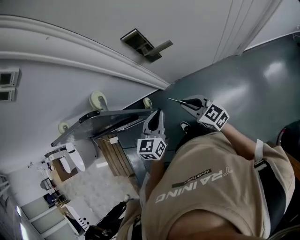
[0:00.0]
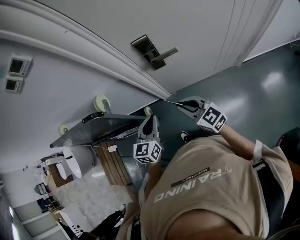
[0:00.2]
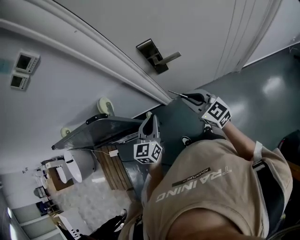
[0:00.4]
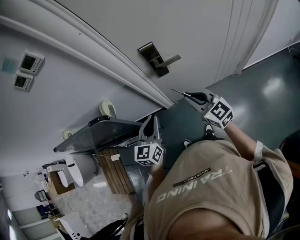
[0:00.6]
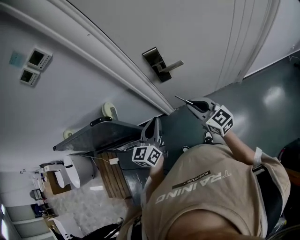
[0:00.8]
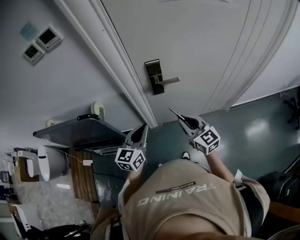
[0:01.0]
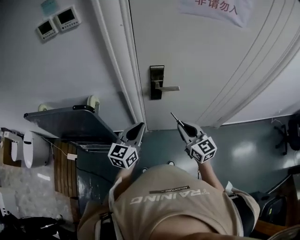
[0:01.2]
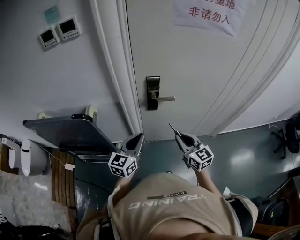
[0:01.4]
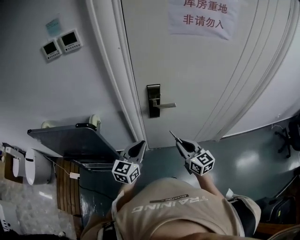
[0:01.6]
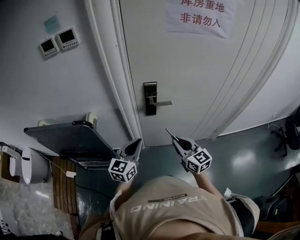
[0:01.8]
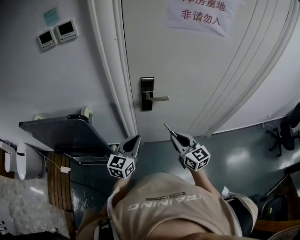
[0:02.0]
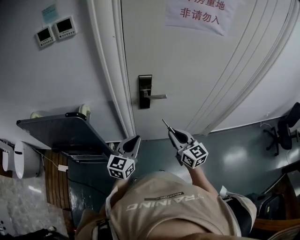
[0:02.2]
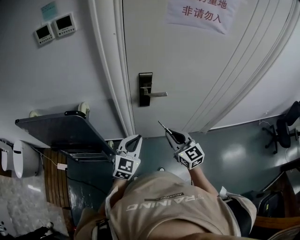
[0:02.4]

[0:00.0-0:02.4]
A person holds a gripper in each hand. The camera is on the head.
0:00.0 to 0:01.2: The grippers both shift upward by about 10 cm.
0:01.2 to 0:02.4: The left gripper swivels roughly 20 degrees.

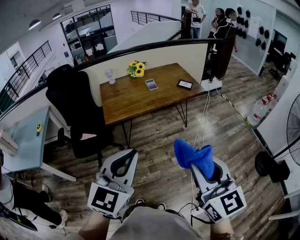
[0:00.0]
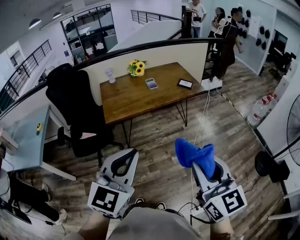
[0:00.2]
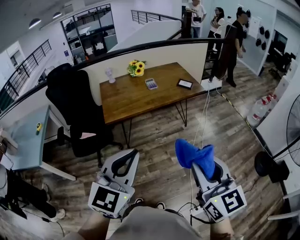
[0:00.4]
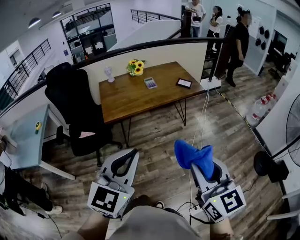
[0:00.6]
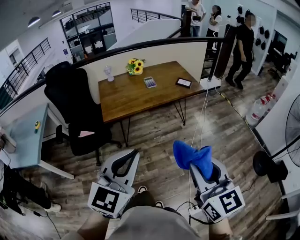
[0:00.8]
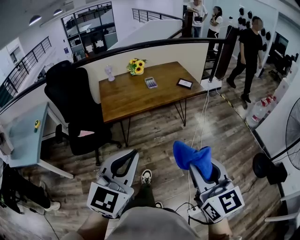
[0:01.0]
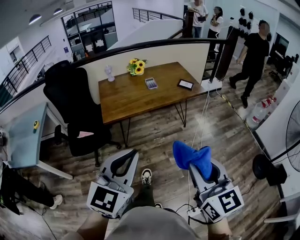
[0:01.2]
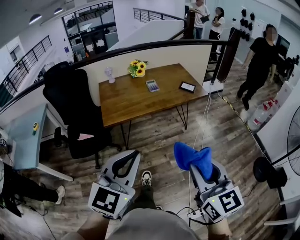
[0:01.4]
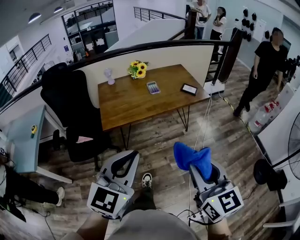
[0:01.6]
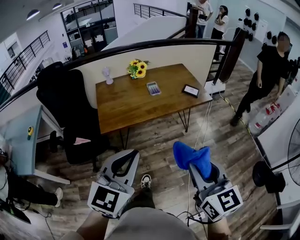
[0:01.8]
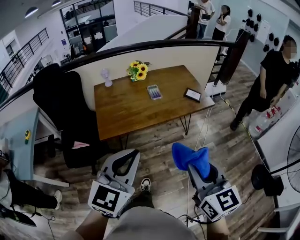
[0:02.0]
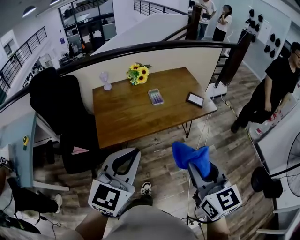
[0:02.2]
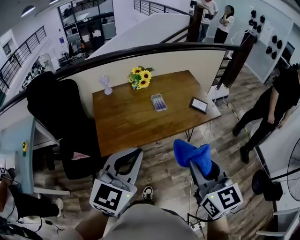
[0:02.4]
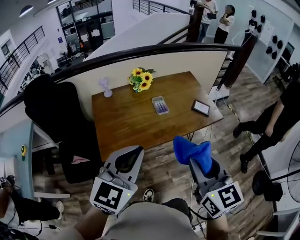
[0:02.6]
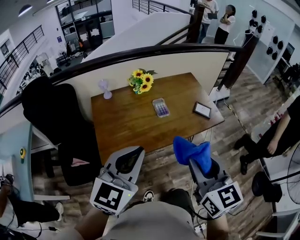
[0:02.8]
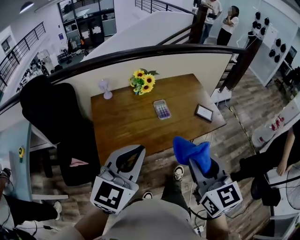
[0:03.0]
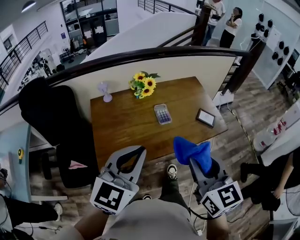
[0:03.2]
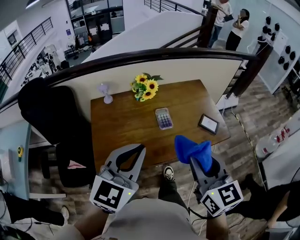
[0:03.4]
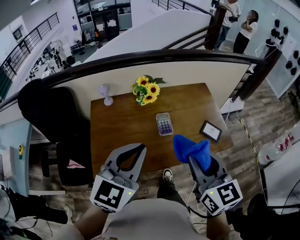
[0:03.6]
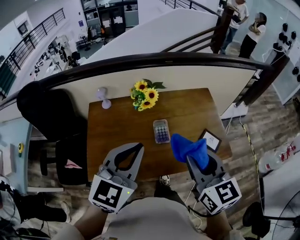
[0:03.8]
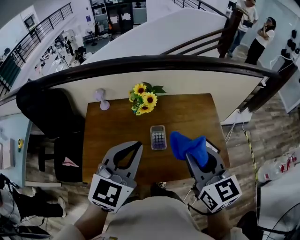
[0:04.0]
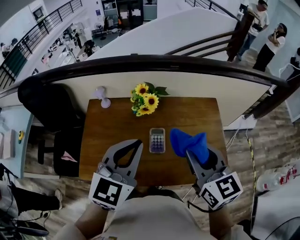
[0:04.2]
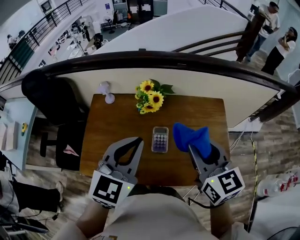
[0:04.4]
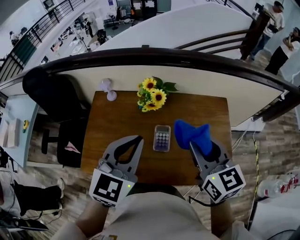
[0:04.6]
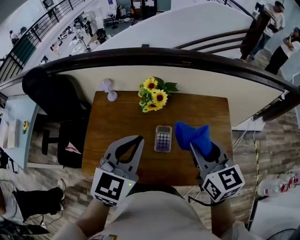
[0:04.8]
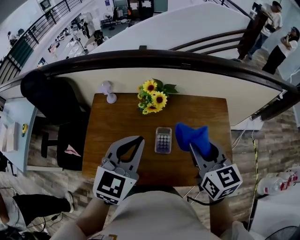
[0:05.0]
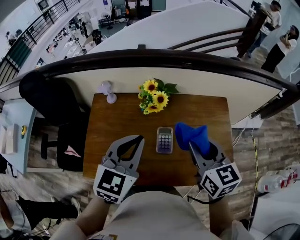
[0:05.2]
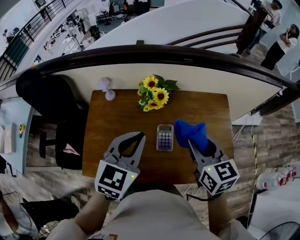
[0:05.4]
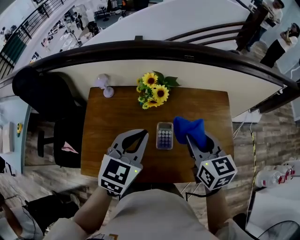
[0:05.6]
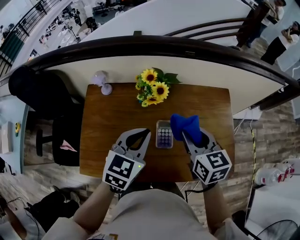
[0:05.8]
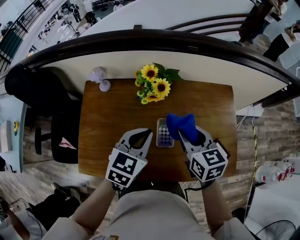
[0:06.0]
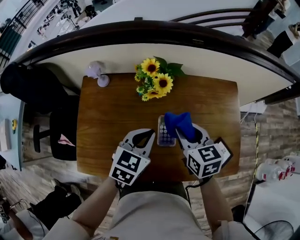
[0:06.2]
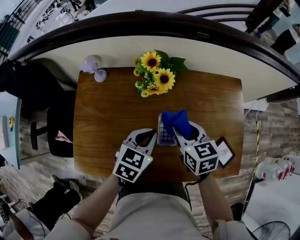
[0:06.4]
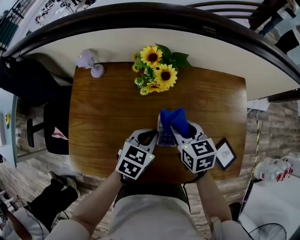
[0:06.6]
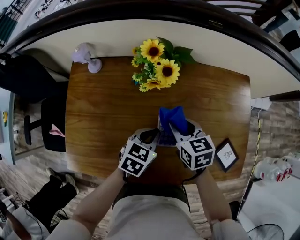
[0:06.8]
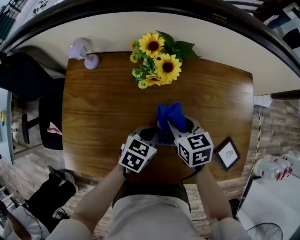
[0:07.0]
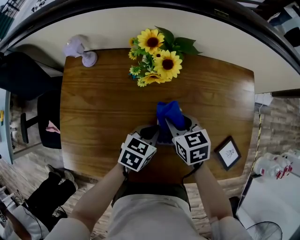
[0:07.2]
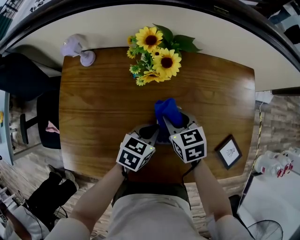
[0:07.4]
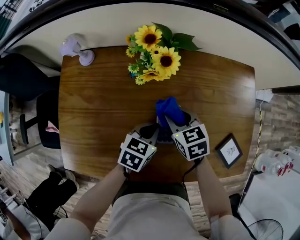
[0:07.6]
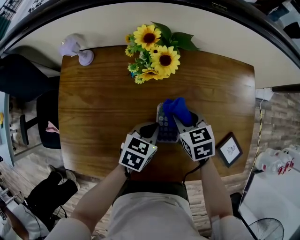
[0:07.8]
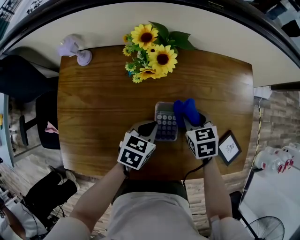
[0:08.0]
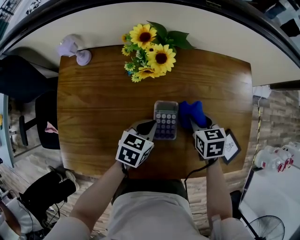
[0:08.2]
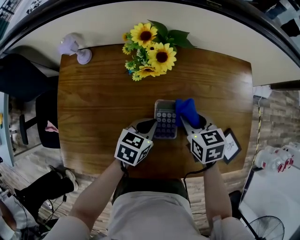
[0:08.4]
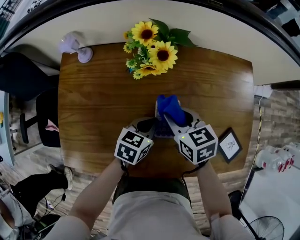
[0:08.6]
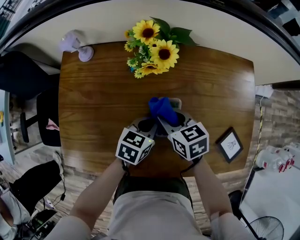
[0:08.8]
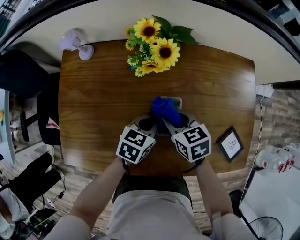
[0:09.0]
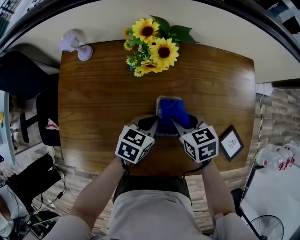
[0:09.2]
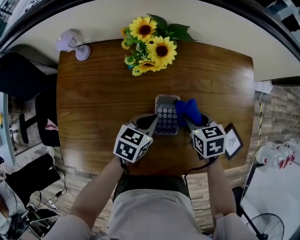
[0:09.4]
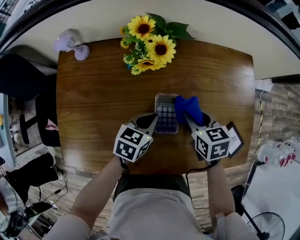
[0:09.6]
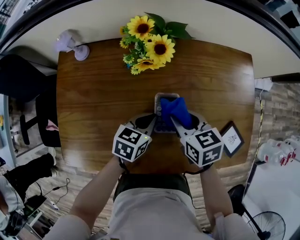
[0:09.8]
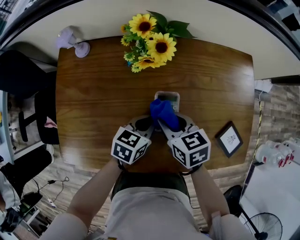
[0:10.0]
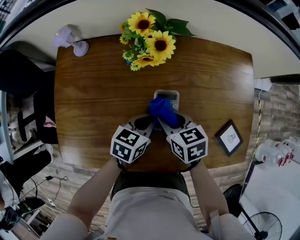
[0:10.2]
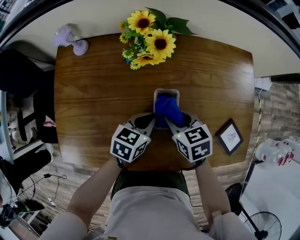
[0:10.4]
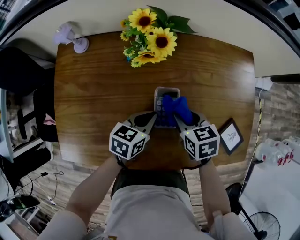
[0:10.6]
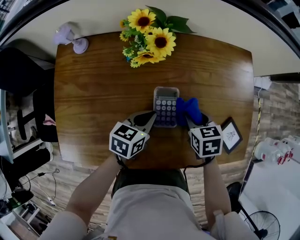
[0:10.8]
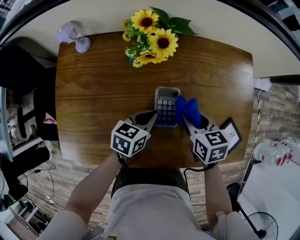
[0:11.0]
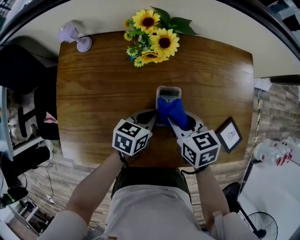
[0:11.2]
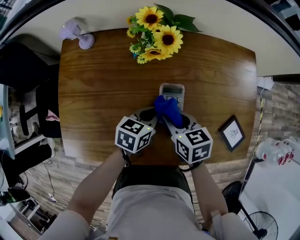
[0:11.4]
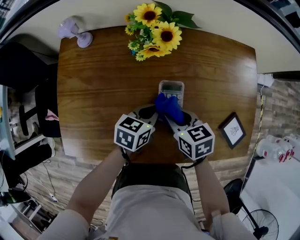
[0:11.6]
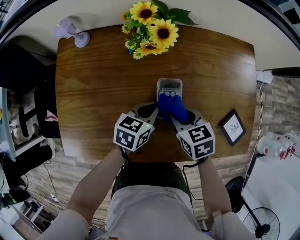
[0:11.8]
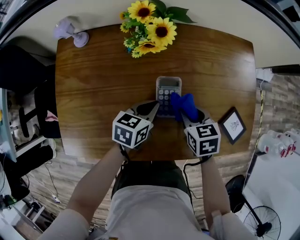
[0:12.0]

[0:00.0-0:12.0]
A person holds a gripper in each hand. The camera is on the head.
0:00.0 to 0:01.6: Both grippers move forward, some 10 cm.
0:01.6 to 0:03.0: Both grippers travel together forward, approximately 35 cm.
0:03.0 to 0:04.4: The grippers both shift forward by approximately 35 cm. The left gripper changes its angle by some 30 degrees, while the right gripper swivels some 20 degrees.
0:04.4 to 0:06.0: The two grippers go some 20 cm downward and forward. The left gripper changes its angle by approximately 20 degrees.
0:06.0 to 0:07.6: The two grippers go about 25 cm downward. The left gripper swivels approximately 20 degrees.
0:07.6 to 0:09.0: The right gripper moves roughly 10 cm to the right and comes back.
0:09.0 to 0:10.4: The right gripper moves some 10 cm to the right and comes back.
0:10.4 to 0:12.0: The right gripper goes left and right, approximately 10 cm each way, reversing 2 times.

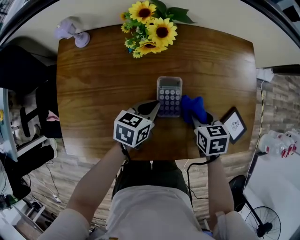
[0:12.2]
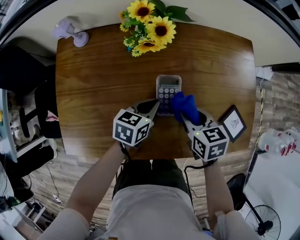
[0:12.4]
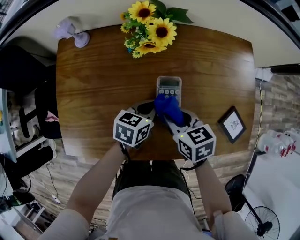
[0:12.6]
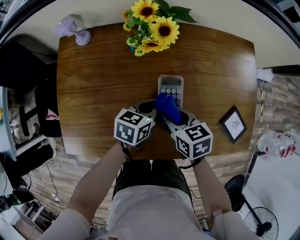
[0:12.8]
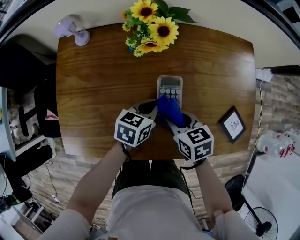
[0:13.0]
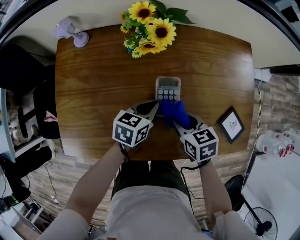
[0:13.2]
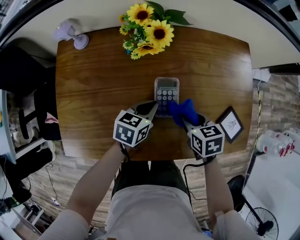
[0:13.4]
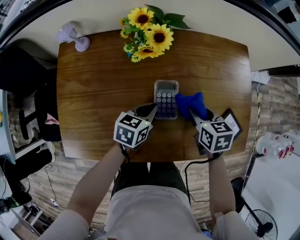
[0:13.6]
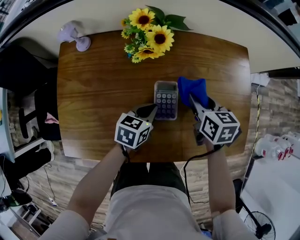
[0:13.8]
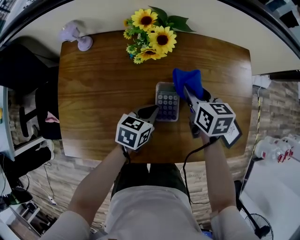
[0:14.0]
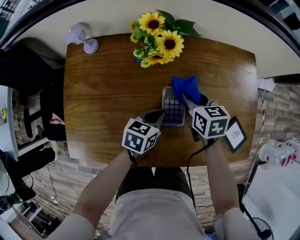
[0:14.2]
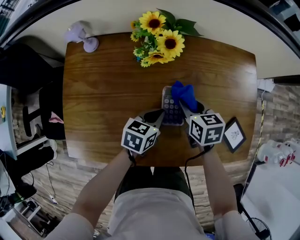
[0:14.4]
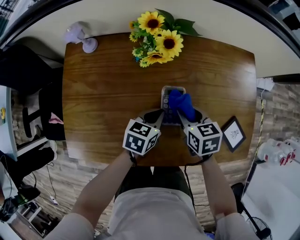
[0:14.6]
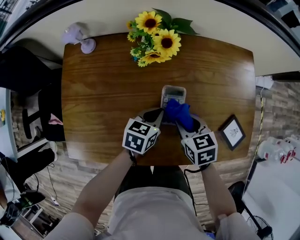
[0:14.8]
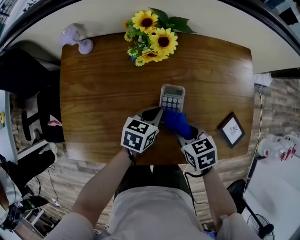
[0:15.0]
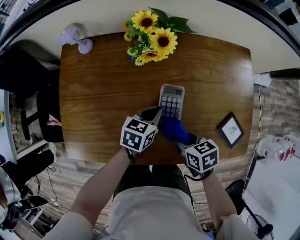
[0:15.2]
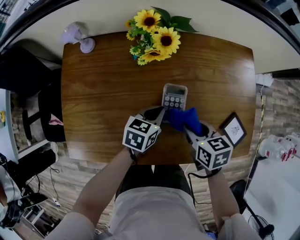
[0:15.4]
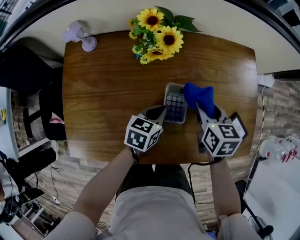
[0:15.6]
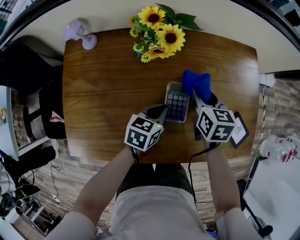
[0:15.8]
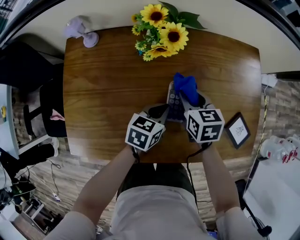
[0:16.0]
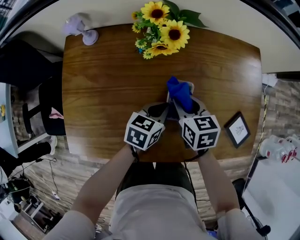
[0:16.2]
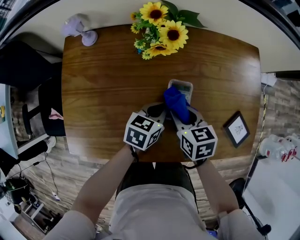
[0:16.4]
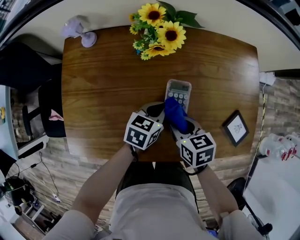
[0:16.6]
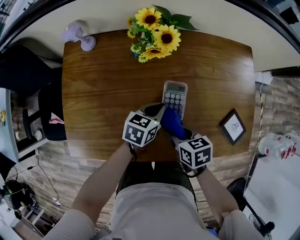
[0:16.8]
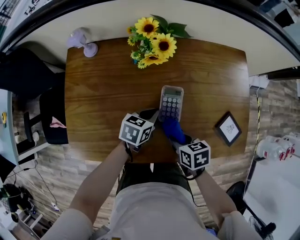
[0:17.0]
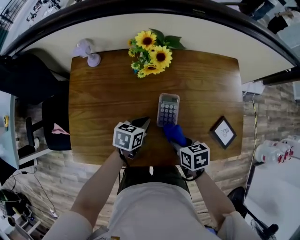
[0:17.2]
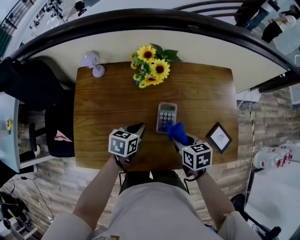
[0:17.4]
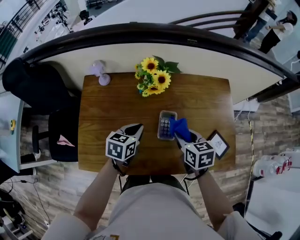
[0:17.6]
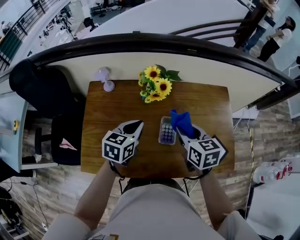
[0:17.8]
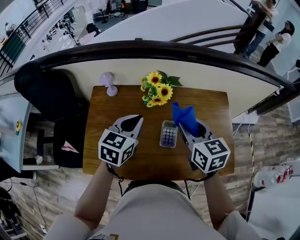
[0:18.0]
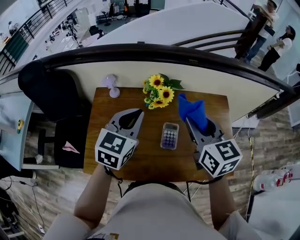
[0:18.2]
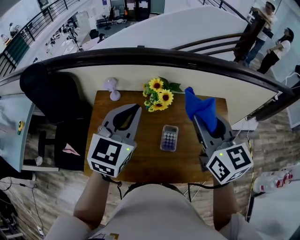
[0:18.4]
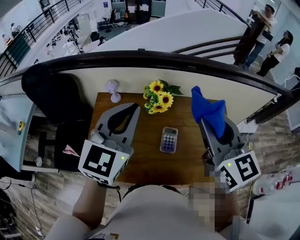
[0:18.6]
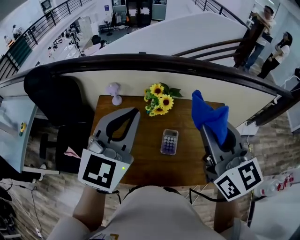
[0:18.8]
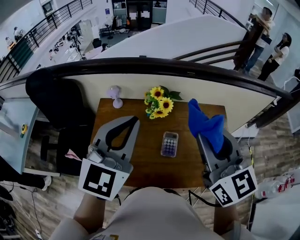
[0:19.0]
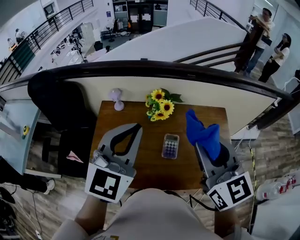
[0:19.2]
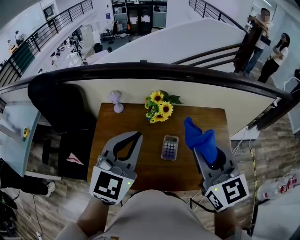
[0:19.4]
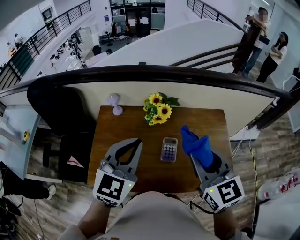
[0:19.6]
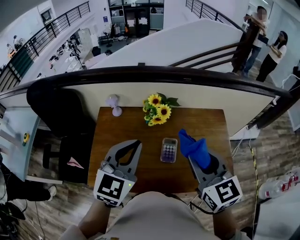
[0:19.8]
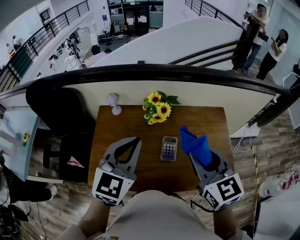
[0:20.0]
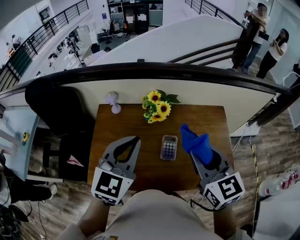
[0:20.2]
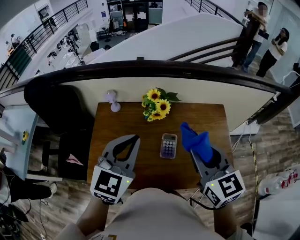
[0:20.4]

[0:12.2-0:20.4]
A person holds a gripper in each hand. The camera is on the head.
0:12.2 to 0:13.8: The right gripper moves forward and upward, approximately 10 cm, and reaches approximately 10 cm to the left, then returns.
0:13.8 to 0:15.4: The right gripper moves backward, roughly 10 cm.
0:15.4 to 0:17.2: The right gripper moves some 10 cm forward and comes back. Meanwhile the left gripper shifts by some 5 cm.
0:17.2 to 0:18.8: The grippers both shift upward by about 50 cm. The right gripper points its fingers about 50 degrees further upward. Meanwhile the left gripper tilts its fingers approximately 40 degrees upward.
0:18.8 to 0:20.4: The grippers both shift downward by approximately 10 cm.
